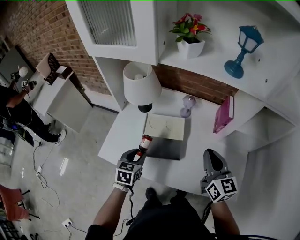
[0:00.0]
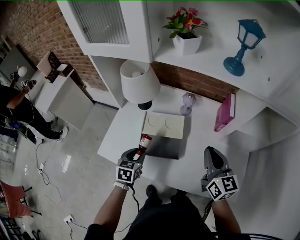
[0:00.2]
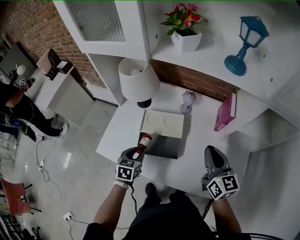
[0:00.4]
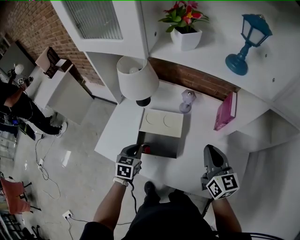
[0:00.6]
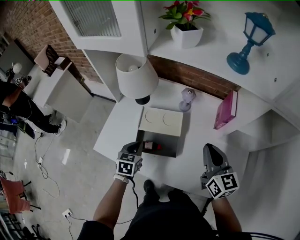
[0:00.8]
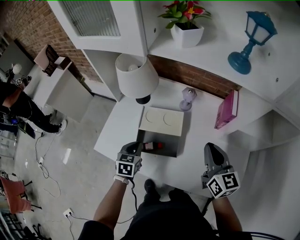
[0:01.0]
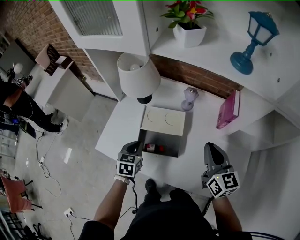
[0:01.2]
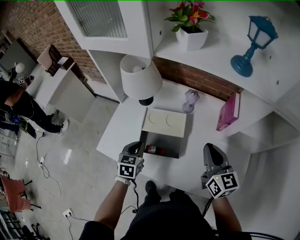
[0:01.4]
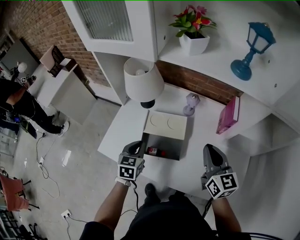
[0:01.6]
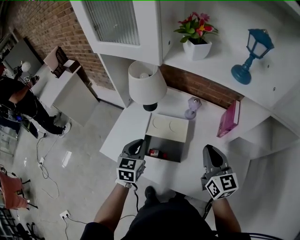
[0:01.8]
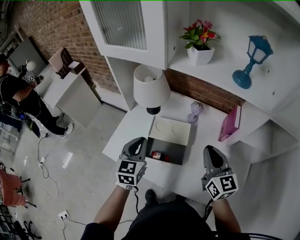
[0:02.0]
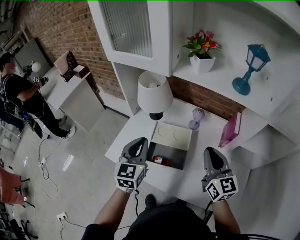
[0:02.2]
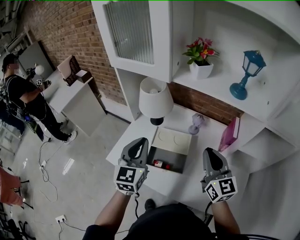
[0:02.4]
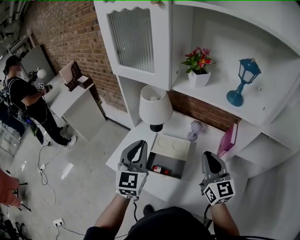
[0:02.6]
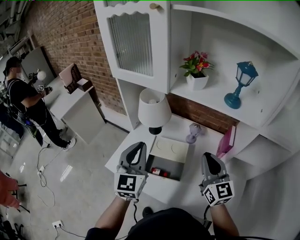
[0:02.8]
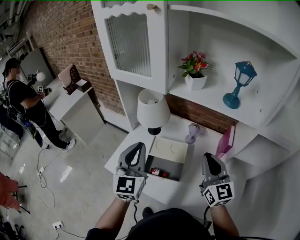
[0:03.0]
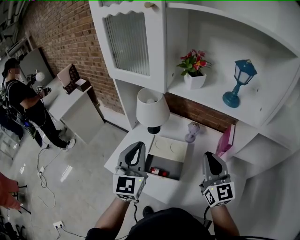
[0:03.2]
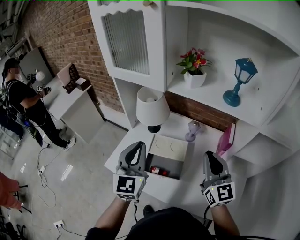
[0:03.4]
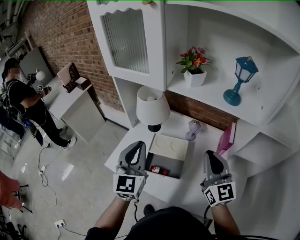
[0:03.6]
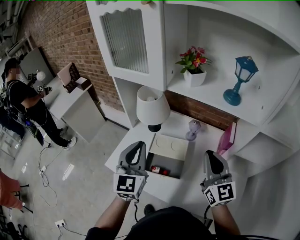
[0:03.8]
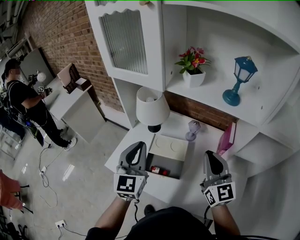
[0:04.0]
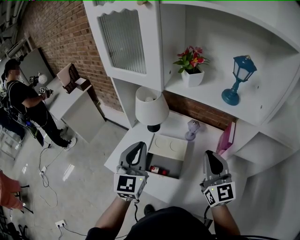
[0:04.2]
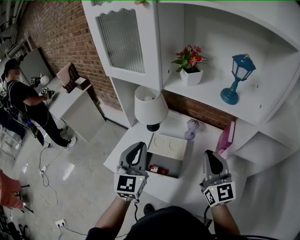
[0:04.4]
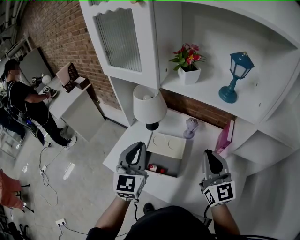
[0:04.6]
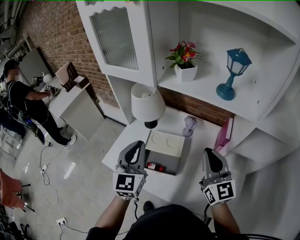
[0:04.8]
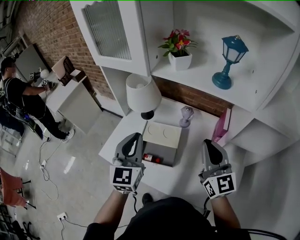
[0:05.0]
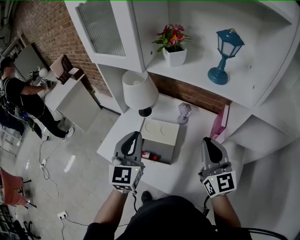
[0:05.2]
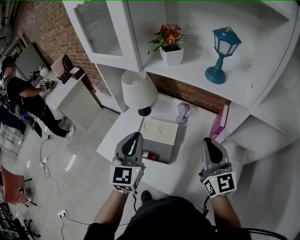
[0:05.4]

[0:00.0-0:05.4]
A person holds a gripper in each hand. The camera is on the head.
0:00.0 to 0:01.4: The left gripper closes.
0:01.4 to 0:02.8: The left gripper moves upward, roughly 30 cm, and points its fingers approximately 40 degrees further upward. Meanwhile the right gripper moves upward, about 10 cm.
0:02.8 to 0:04.0: The grippers stay close to where they were, moving slightly.
0:04.0 to 0:05.4: Both grippers move to the right, approximately 5 cm.

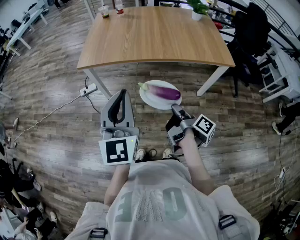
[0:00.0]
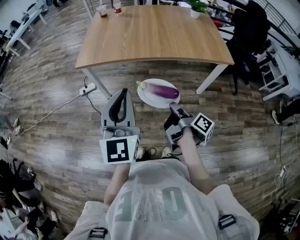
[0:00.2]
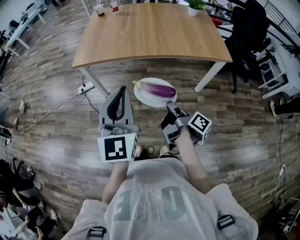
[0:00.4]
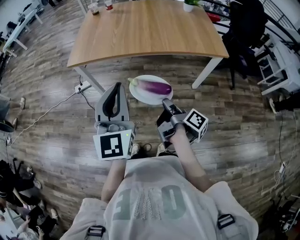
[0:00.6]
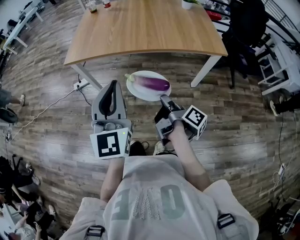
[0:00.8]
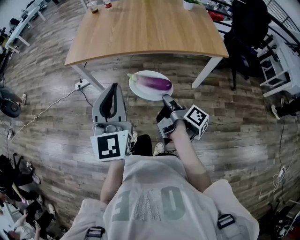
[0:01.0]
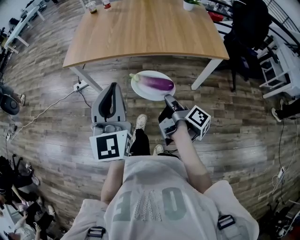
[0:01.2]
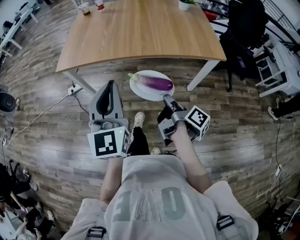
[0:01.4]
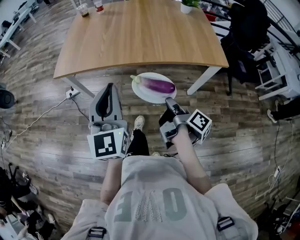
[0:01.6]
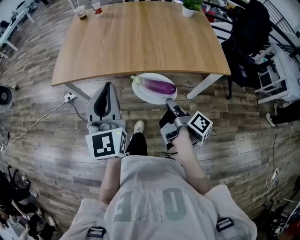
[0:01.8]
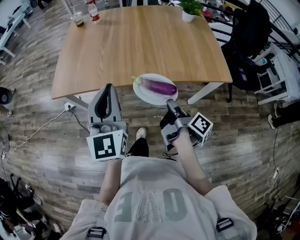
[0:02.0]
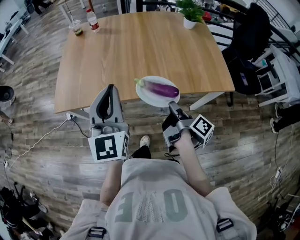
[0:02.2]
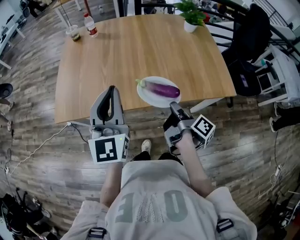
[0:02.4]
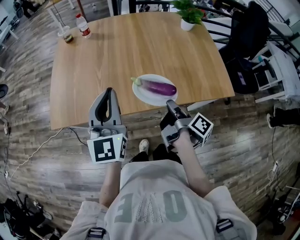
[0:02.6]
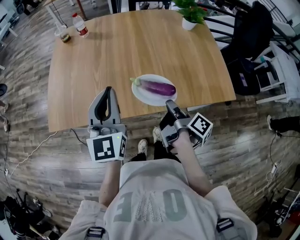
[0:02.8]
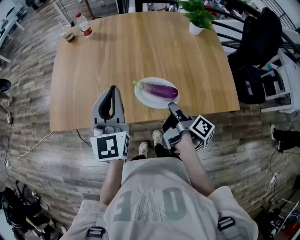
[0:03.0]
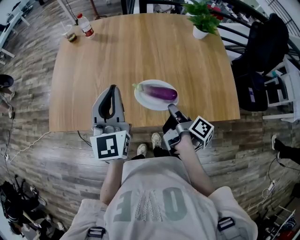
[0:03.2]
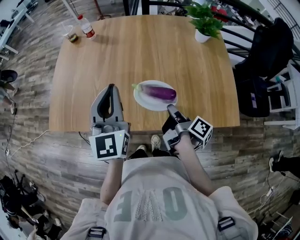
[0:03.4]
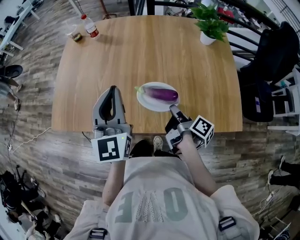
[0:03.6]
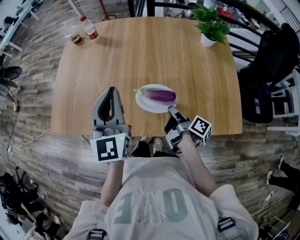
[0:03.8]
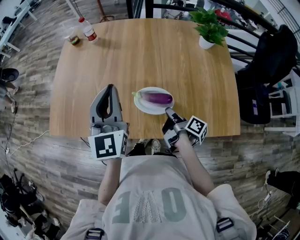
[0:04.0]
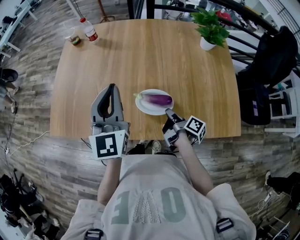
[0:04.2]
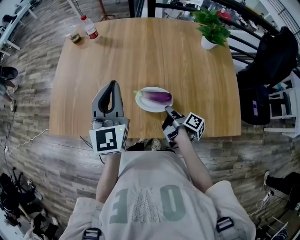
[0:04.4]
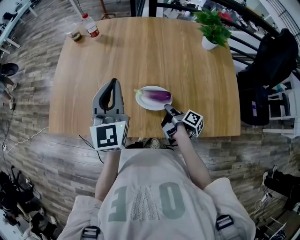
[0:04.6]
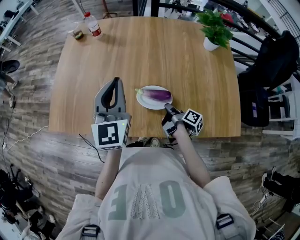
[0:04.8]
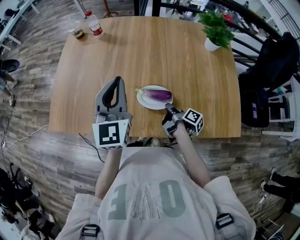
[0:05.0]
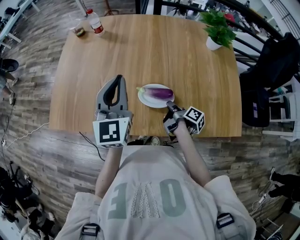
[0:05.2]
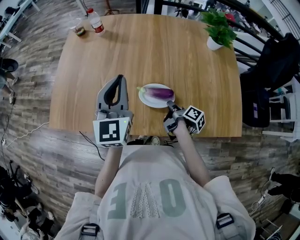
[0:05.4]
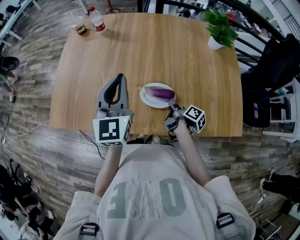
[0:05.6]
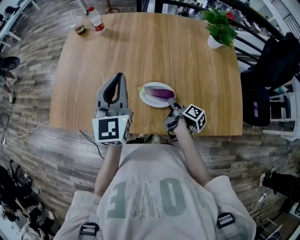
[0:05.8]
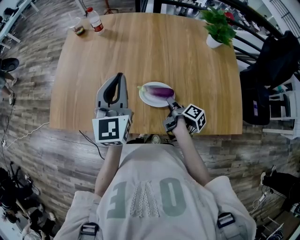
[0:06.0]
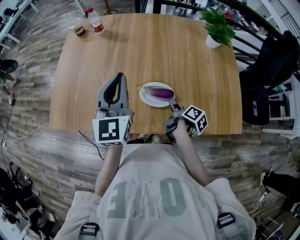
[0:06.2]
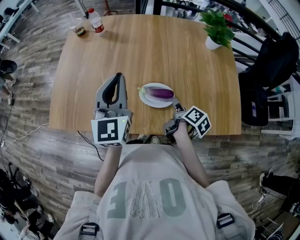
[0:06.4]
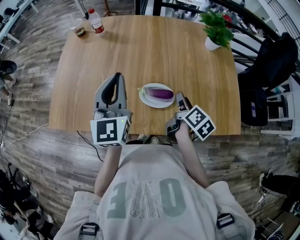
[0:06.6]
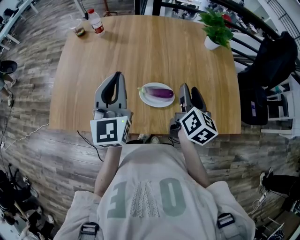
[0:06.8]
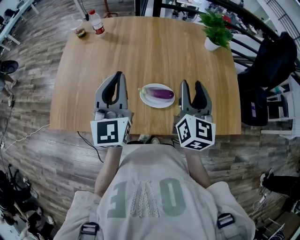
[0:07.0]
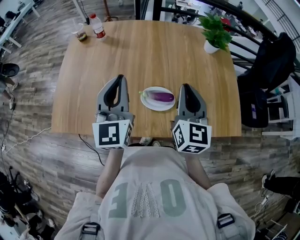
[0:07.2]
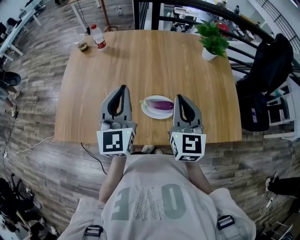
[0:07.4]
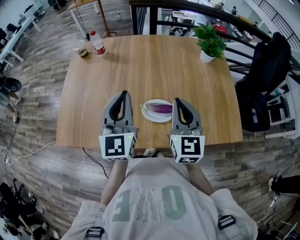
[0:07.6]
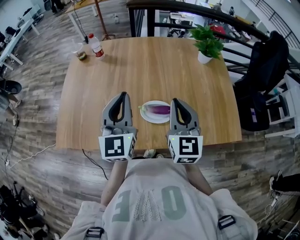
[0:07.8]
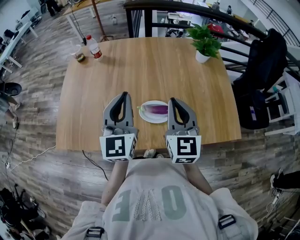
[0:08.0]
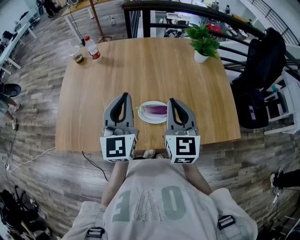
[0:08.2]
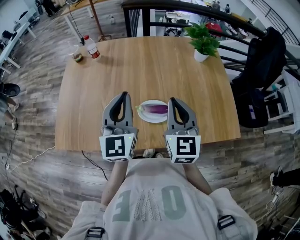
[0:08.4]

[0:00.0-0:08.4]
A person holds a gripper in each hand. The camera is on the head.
0:00.0 to 0:01.4: The left gripper changes place by some 10 cm.
0:01.4 to 0:02.8: The left gripper moves approximately 35 cm.
0:02.8 to 0:04.2: The left gripper changes place by approximately 10 cm.

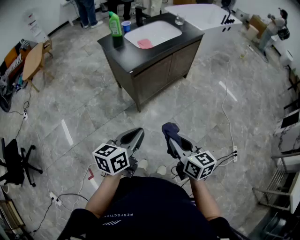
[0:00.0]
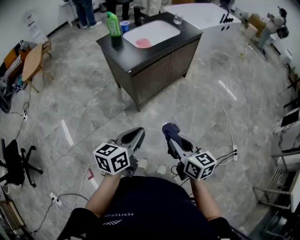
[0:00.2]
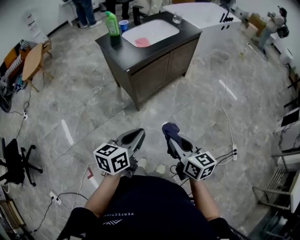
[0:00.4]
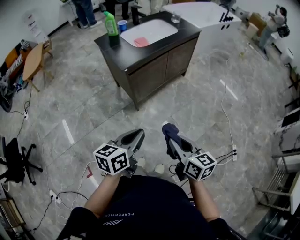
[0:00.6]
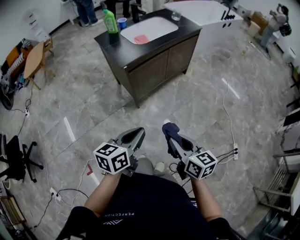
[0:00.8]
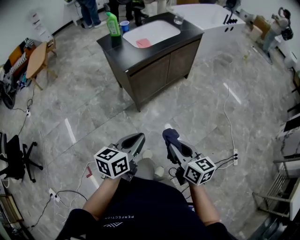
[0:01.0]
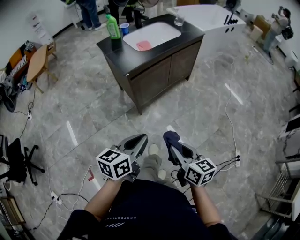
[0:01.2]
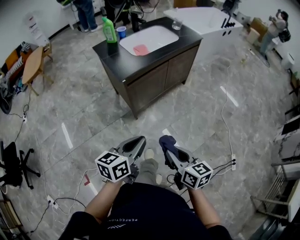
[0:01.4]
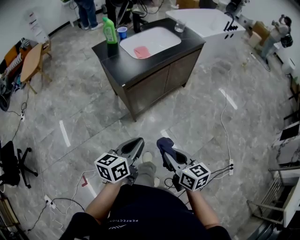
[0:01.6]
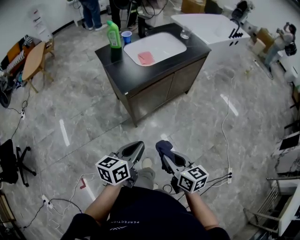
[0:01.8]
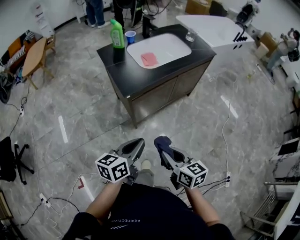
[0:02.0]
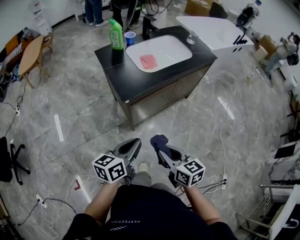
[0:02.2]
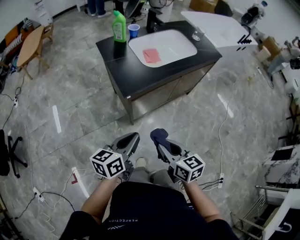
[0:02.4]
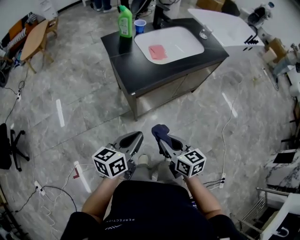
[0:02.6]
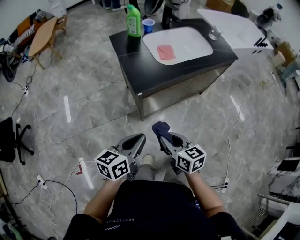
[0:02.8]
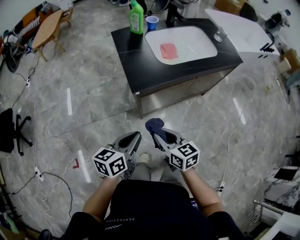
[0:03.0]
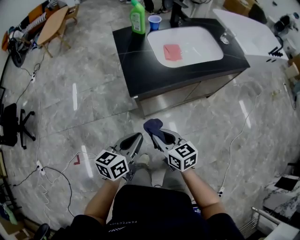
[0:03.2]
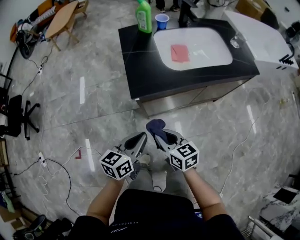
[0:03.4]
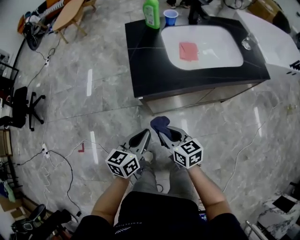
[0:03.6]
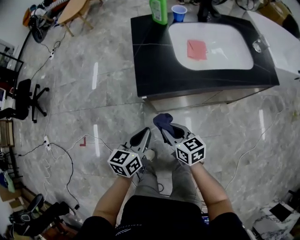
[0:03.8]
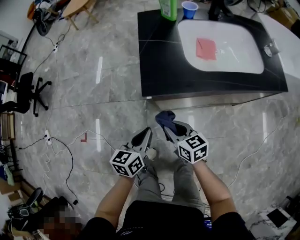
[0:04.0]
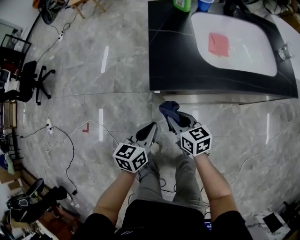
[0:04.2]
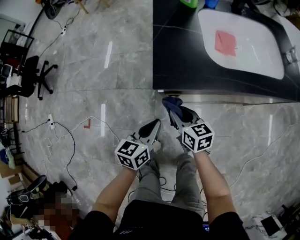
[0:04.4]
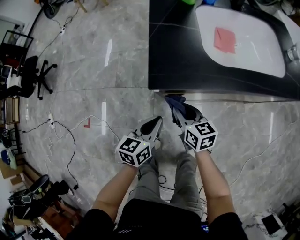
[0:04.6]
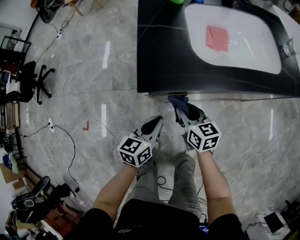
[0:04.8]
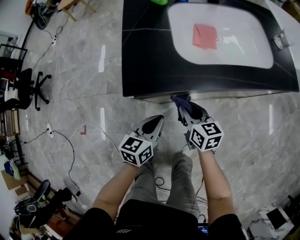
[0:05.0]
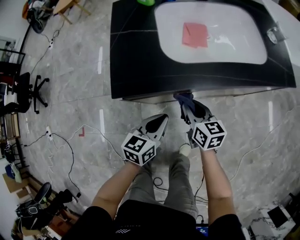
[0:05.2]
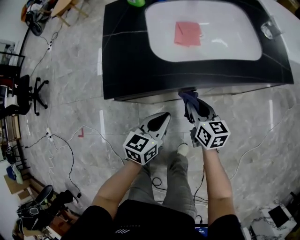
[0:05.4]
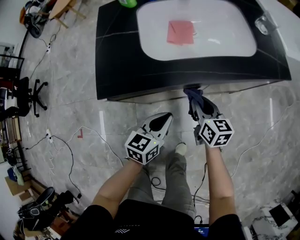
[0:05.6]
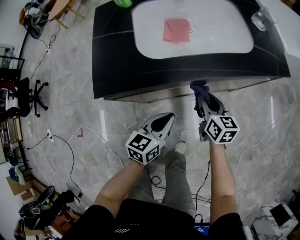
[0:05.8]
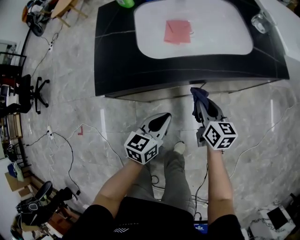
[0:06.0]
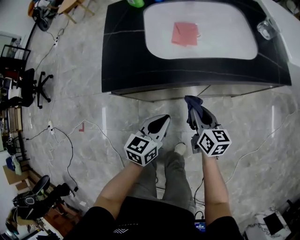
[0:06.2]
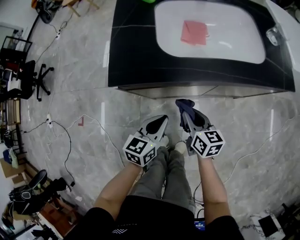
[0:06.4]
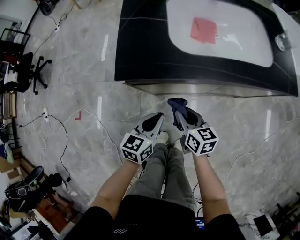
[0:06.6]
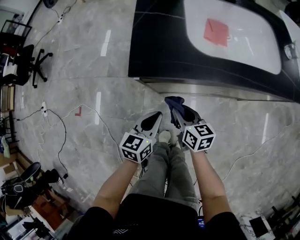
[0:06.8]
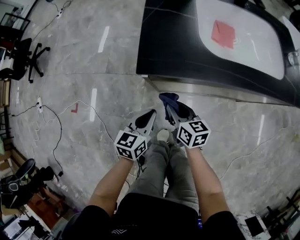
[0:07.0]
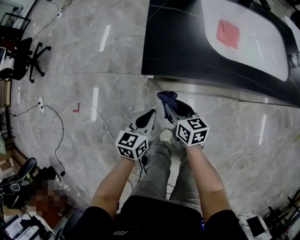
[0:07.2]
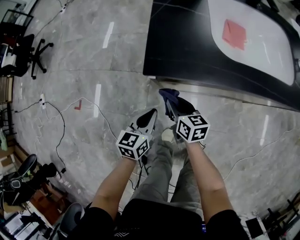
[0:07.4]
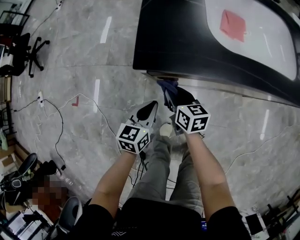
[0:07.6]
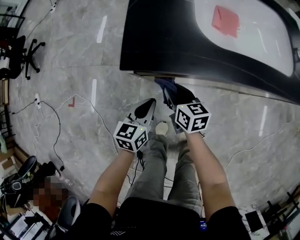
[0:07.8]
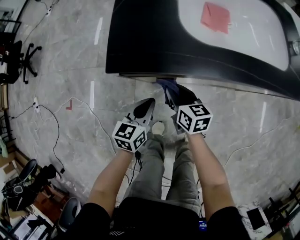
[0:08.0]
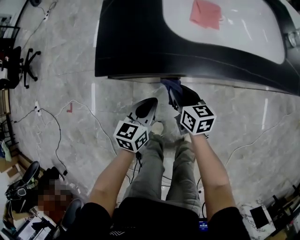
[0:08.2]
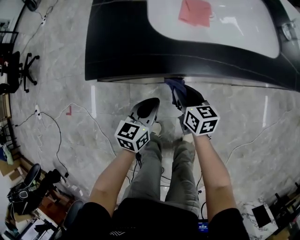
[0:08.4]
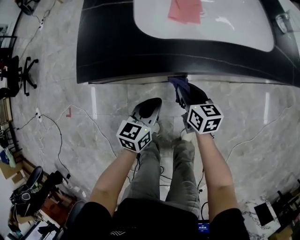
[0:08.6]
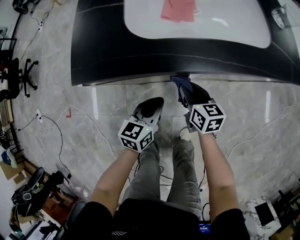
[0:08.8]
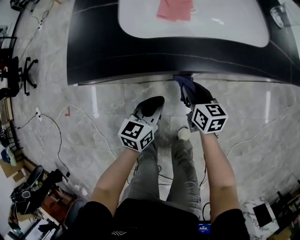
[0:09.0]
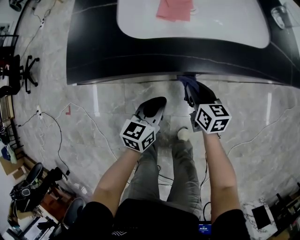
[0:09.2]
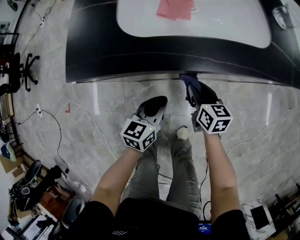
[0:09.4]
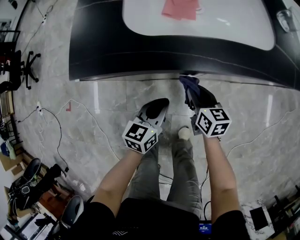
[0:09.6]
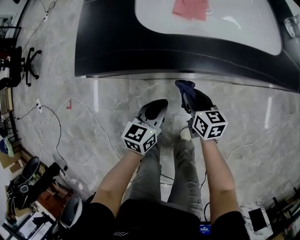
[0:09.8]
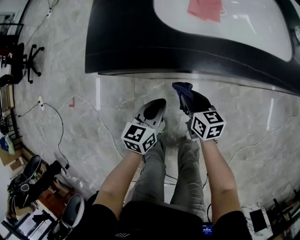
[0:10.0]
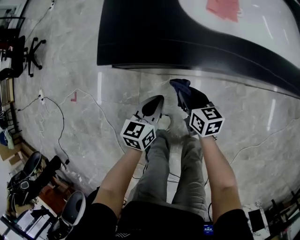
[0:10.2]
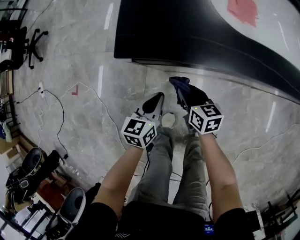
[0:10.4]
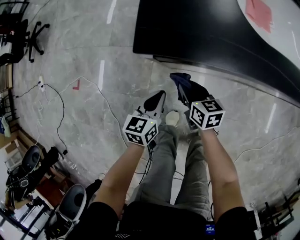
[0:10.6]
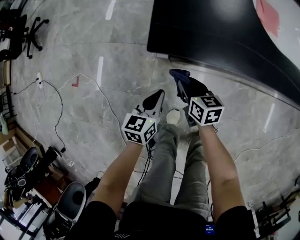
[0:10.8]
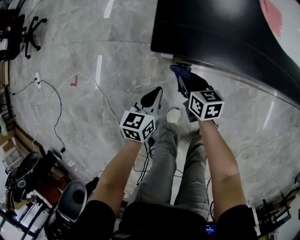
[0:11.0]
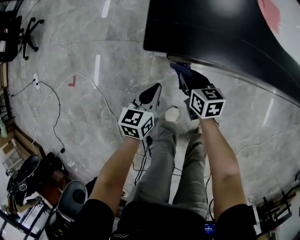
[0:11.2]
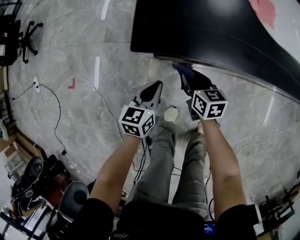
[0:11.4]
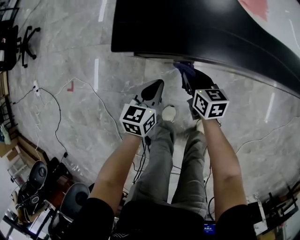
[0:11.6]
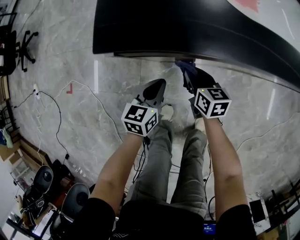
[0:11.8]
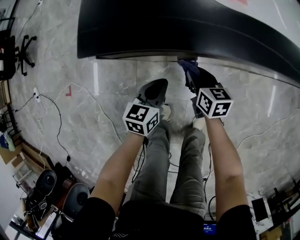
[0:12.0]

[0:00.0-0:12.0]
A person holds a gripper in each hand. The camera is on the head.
0:00.0 to 0:01.6: Both grippers move forward, about 5 cm.
0:01.6 to 0:03.0: The two grippers go some 20 cm forward. The right gripper turns by about 20 degrees.
0:03.0 to 0:04.4: The right gripper shifts roughly 20 cm forward and downward. Meanwhile the left gripper travels downward and forward by some 15 cm, and swivels roughly 30 degrees.
0:04.4 to 0:06.0: The grippers both shift to the right by about 25 cm. The right gripper swivels roughly 20 degrees.
0:06.0 to 0:07.6: The grippers both shift to the left by approximately 25 cm. The right gripper rotates about 20 degrees.
0:07.6 to 0:09.0: Both grippers travel together to the right, about 25 cm.
0:09.0 to 0:10.4: Both grippers move to the left, about 20 cm.
0:10.4 to 0:12.0: Both grippers move to the right, about 5 cm.
